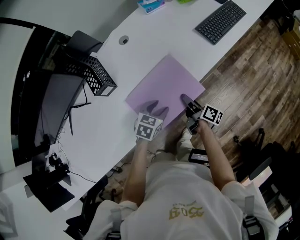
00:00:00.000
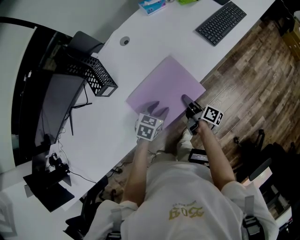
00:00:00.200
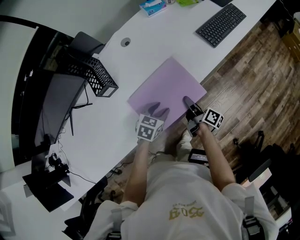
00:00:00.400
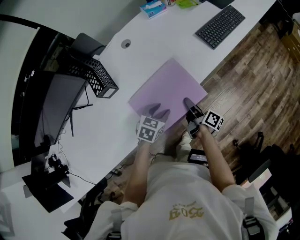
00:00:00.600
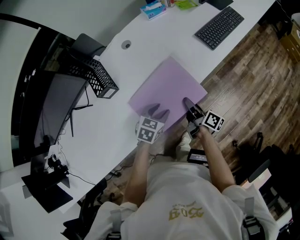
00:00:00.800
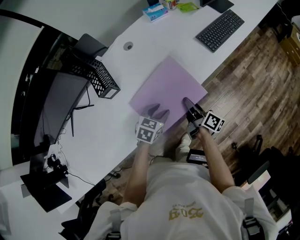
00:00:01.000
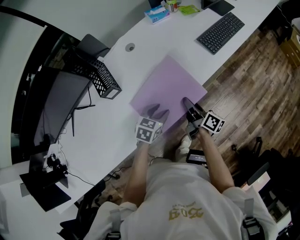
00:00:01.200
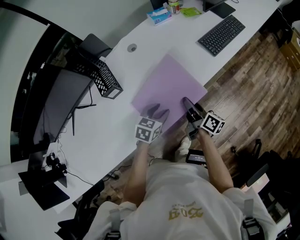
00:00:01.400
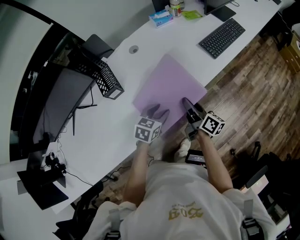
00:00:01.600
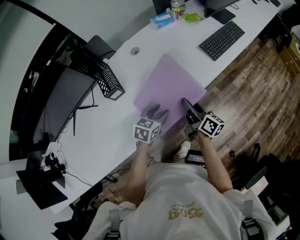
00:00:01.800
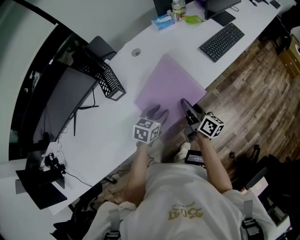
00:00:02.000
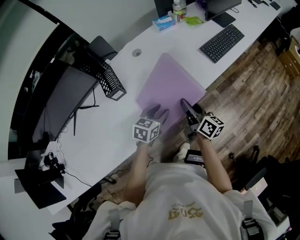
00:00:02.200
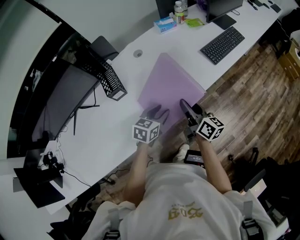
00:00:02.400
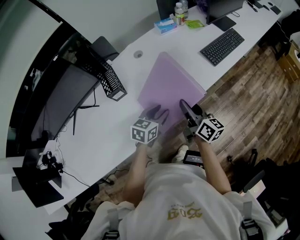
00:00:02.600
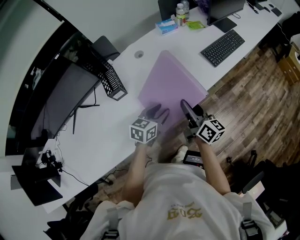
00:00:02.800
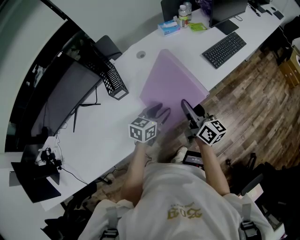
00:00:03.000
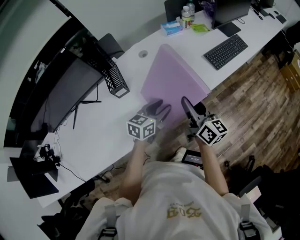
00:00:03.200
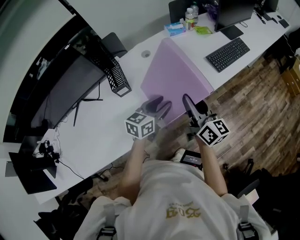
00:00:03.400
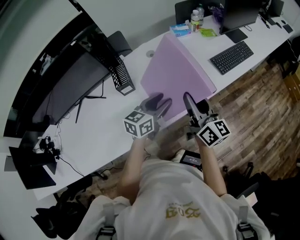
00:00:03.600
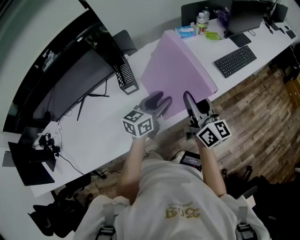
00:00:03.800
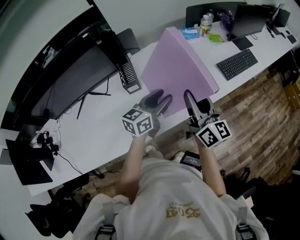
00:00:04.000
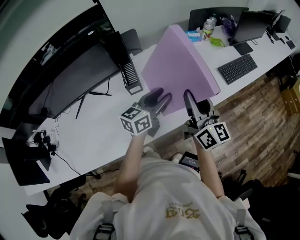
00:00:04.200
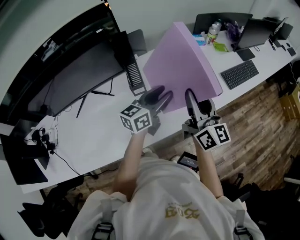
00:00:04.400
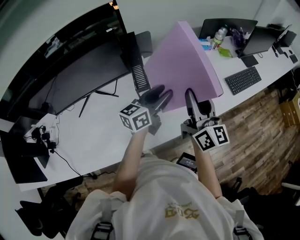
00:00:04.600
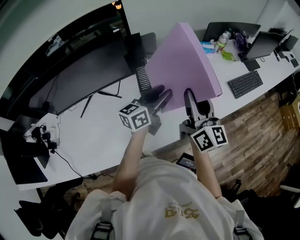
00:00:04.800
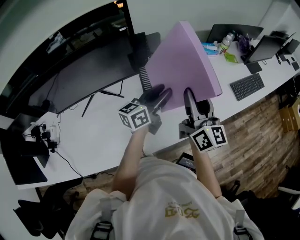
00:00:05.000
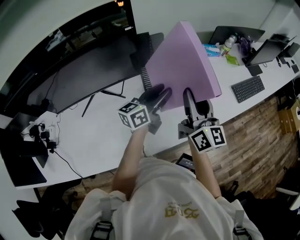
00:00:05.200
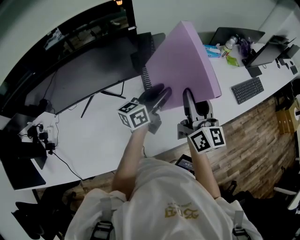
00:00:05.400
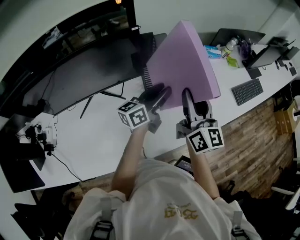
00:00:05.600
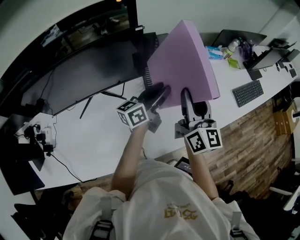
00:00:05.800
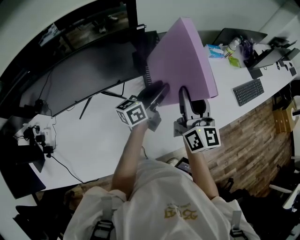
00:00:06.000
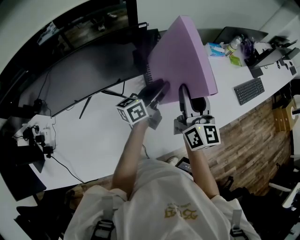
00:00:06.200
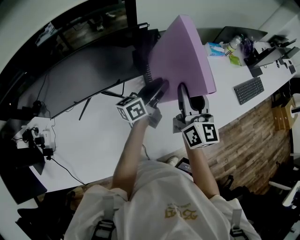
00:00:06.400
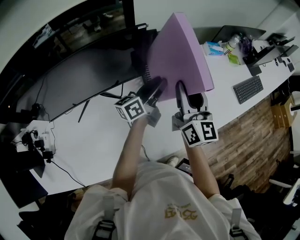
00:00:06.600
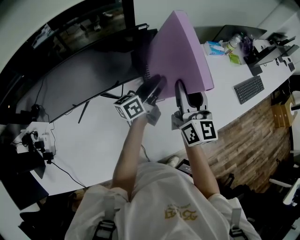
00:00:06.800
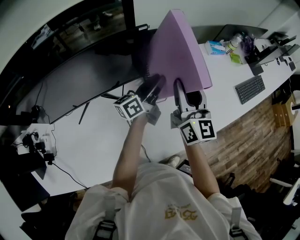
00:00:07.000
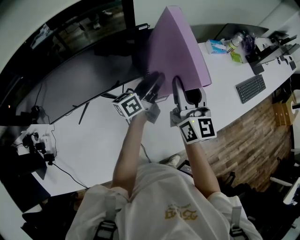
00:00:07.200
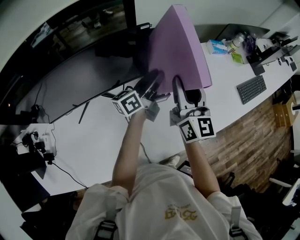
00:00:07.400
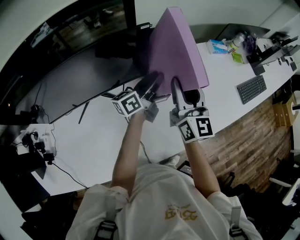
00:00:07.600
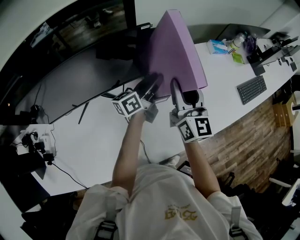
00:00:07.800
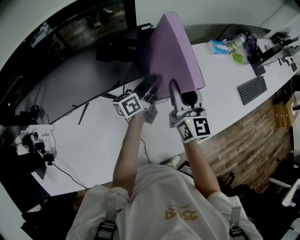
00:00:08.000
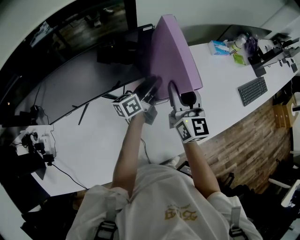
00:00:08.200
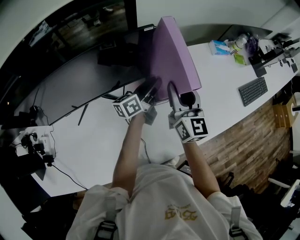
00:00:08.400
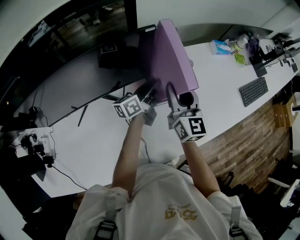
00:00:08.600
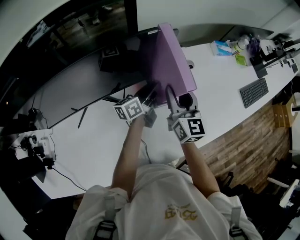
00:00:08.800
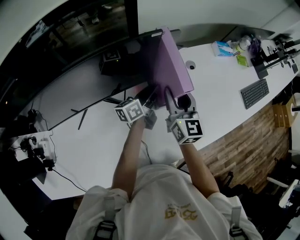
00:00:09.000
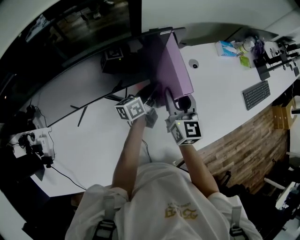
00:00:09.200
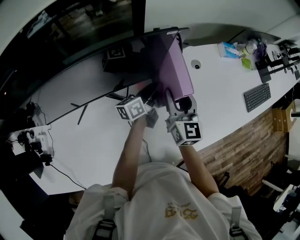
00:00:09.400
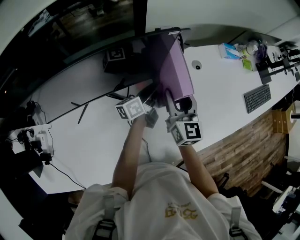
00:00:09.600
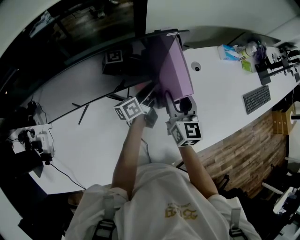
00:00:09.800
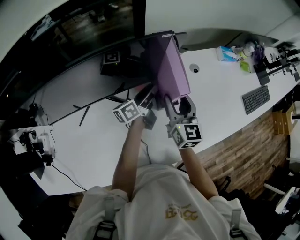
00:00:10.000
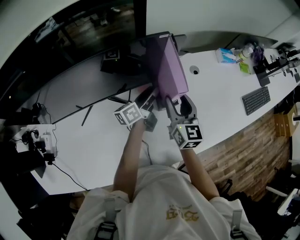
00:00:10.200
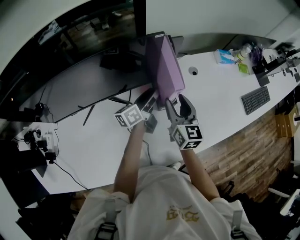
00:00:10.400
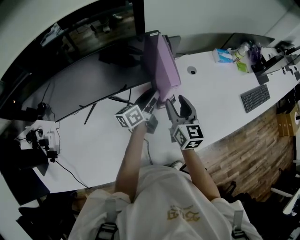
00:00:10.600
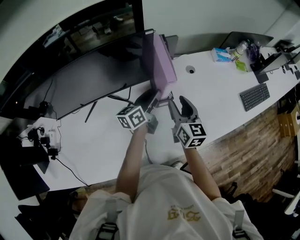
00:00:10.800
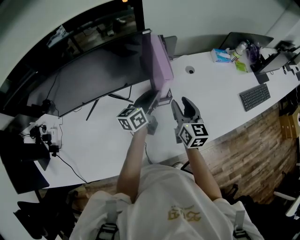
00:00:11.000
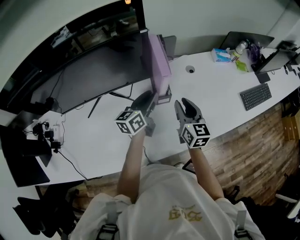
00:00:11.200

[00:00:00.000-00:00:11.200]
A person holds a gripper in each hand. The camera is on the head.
00:00:00.000 to 00:00:01.600: The right gripper heads upward, covering roughly 10 cm. The left gripper shifts about 5 cm upward.
00:00:01.600 to 00:00:03.200: The left gripper shifts some 10 cm upward, and changes its angle by about 20 degrees. Meanwhile the right gripper heads upward, covering some 15 cm, and rotates approximately 30 degrees.
00:00:03.200 to 00:00:04.800: Both grippers travel together to the left and upward, approximately 20 cm. The left gripper changes its angle by about 30 degrees.
00:00:04.800 to 00:00:06.400: The left gripper heads to the left and forward, covering some 15 cm, while the right gripper travels to the left by roughly 15 cm.
00:00:06.400 to 00:00:08.000: The right gripper shifts by about 10 cm. Meanwhile the left gripper shifts by some 5 cm.
00:00:08.000 to 00:00:09.600: The left gripper shifts some 10 cm downward. Meanwhile the right gripper moves downward and to the left, roughly 10 cm.
00:00:09.600 to 00:00:11.200: The right gripper is displaced to the right and backward by some 15 cm; the left gripper goes roughly 15 cm backward and upward, and turns by approximately 30 degrees.

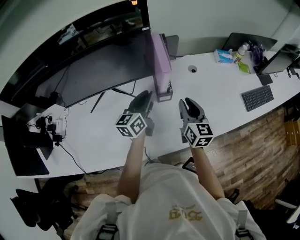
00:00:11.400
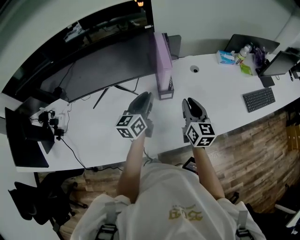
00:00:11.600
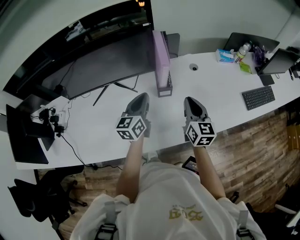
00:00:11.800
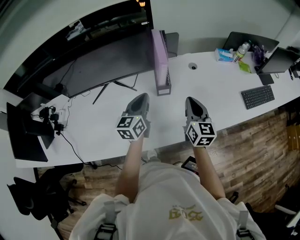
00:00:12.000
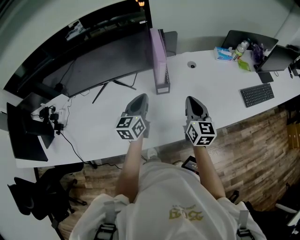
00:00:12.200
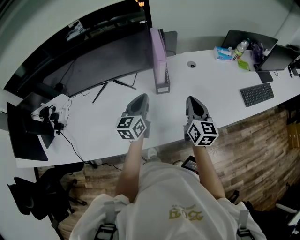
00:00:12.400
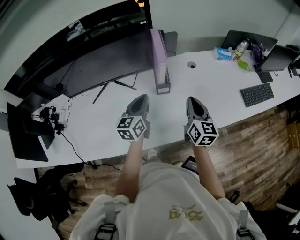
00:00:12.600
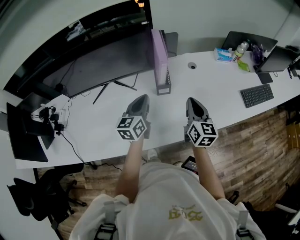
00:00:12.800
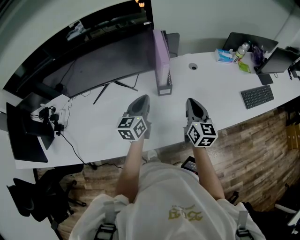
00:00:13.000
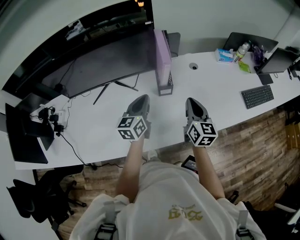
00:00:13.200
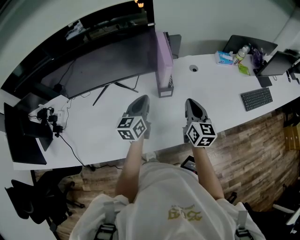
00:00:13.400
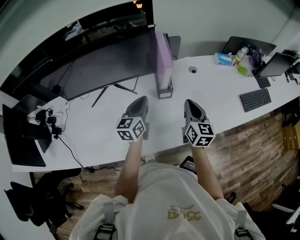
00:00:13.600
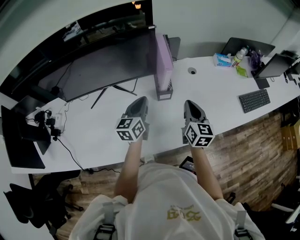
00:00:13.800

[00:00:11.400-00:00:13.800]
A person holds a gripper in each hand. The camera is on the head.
00:00:11.400 to 00:00:12.600: The grippers both shift backward by some 5 cm. The left gripper closes up.
00:00:12.600 to 00:00:13.800: The grippers stay close to where they were, moving slightly.

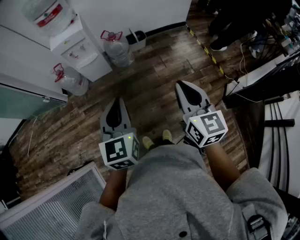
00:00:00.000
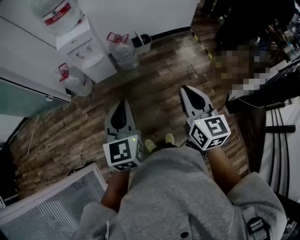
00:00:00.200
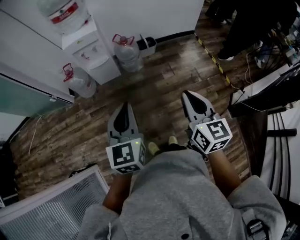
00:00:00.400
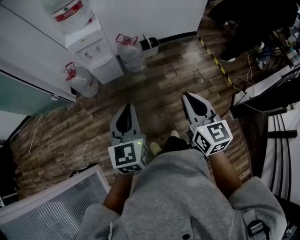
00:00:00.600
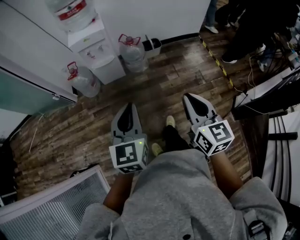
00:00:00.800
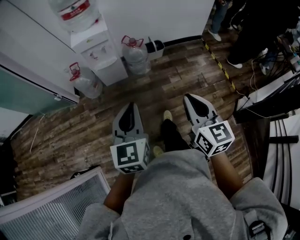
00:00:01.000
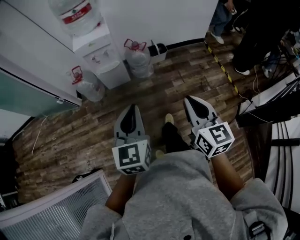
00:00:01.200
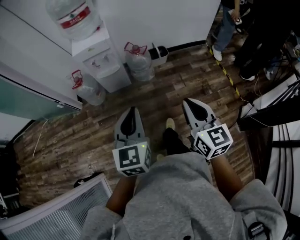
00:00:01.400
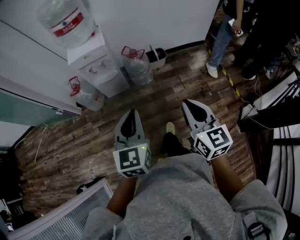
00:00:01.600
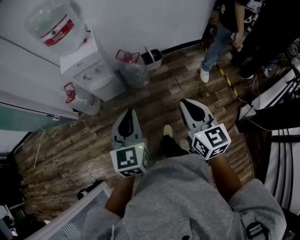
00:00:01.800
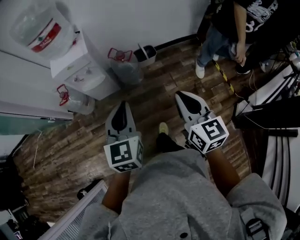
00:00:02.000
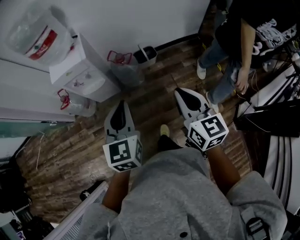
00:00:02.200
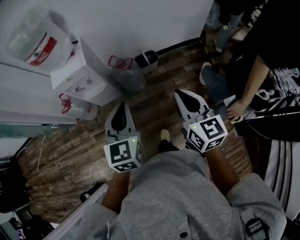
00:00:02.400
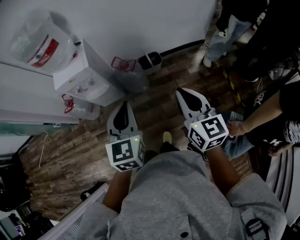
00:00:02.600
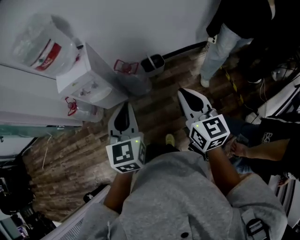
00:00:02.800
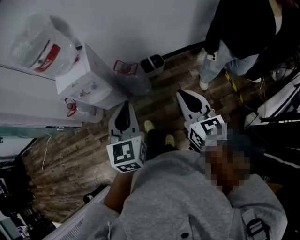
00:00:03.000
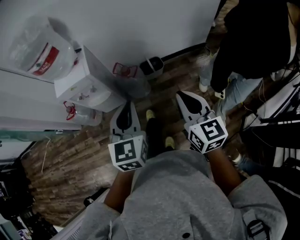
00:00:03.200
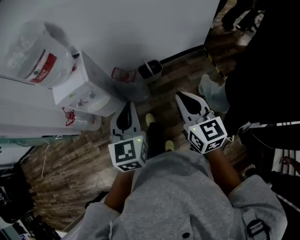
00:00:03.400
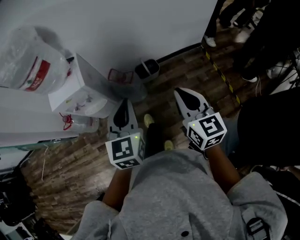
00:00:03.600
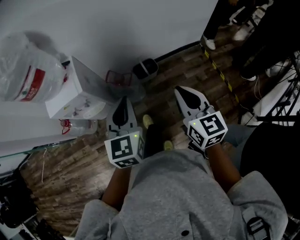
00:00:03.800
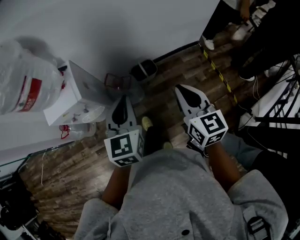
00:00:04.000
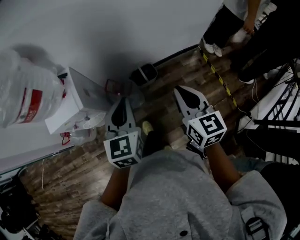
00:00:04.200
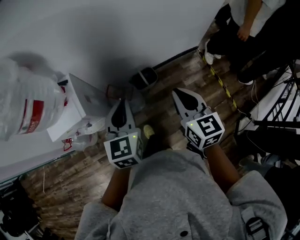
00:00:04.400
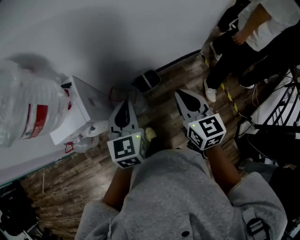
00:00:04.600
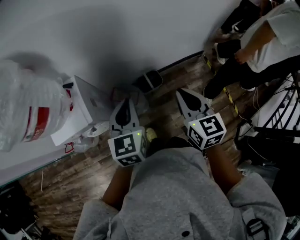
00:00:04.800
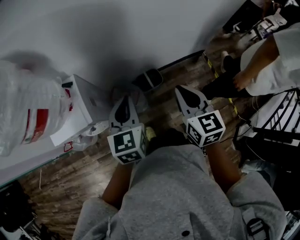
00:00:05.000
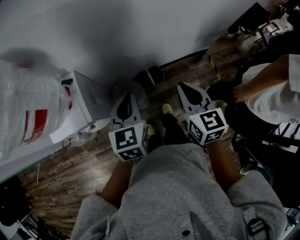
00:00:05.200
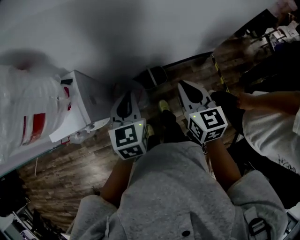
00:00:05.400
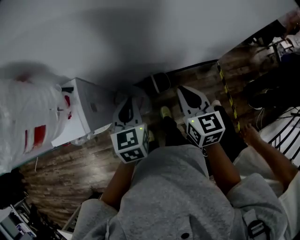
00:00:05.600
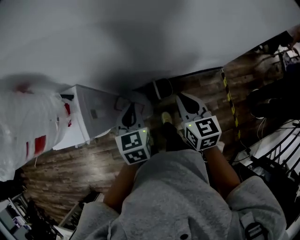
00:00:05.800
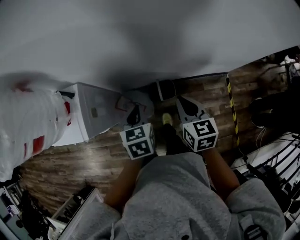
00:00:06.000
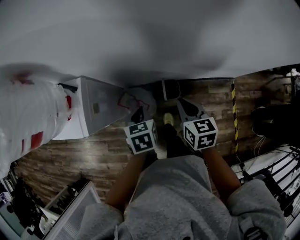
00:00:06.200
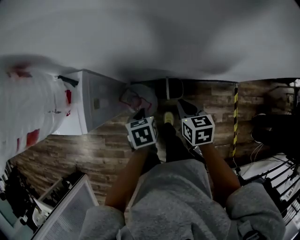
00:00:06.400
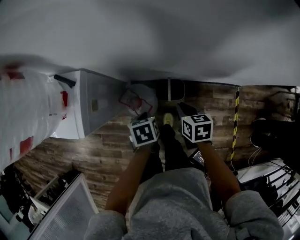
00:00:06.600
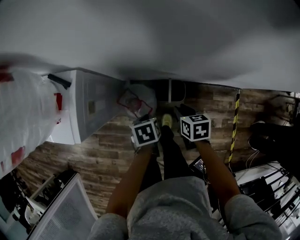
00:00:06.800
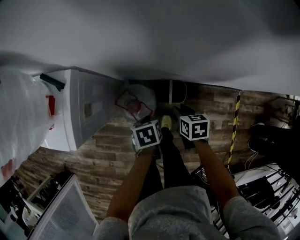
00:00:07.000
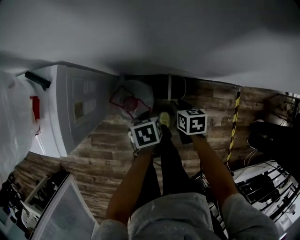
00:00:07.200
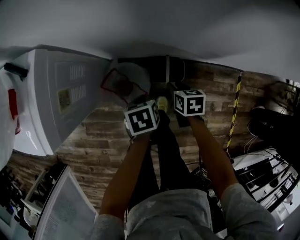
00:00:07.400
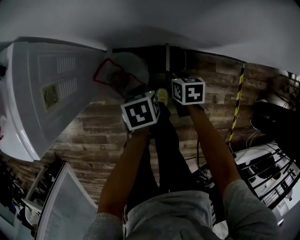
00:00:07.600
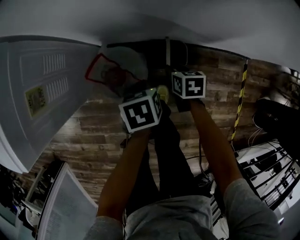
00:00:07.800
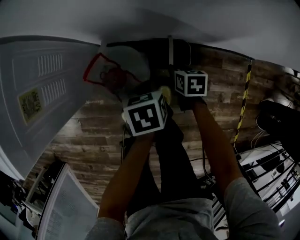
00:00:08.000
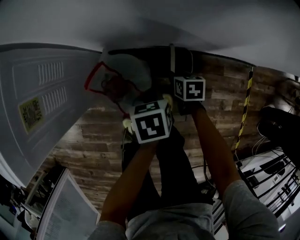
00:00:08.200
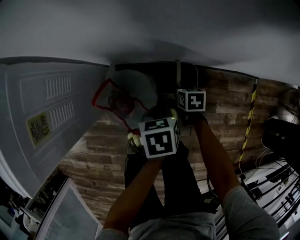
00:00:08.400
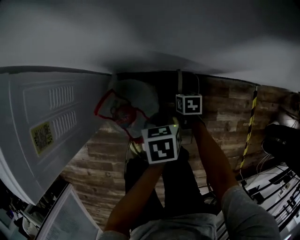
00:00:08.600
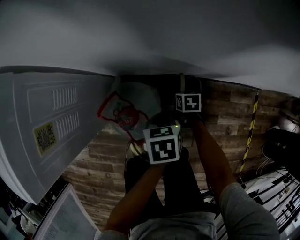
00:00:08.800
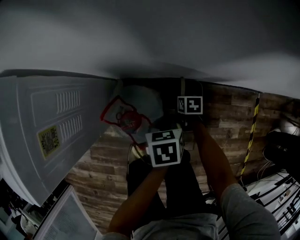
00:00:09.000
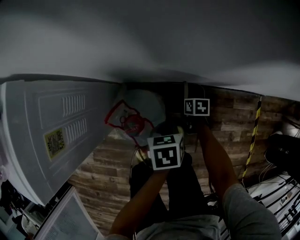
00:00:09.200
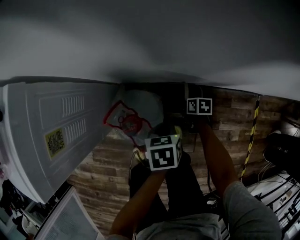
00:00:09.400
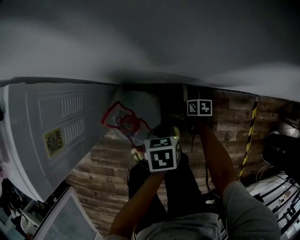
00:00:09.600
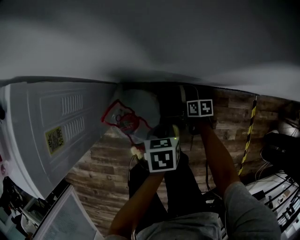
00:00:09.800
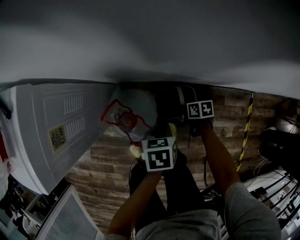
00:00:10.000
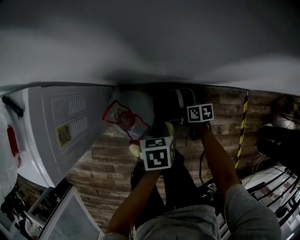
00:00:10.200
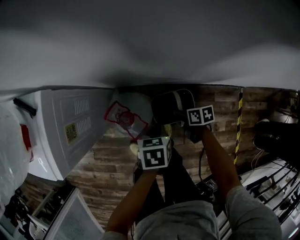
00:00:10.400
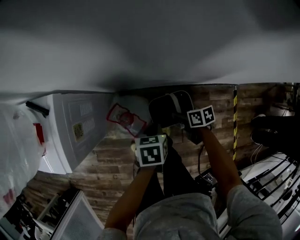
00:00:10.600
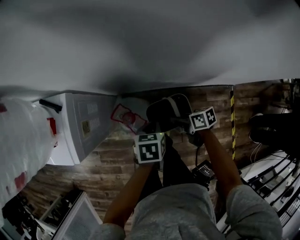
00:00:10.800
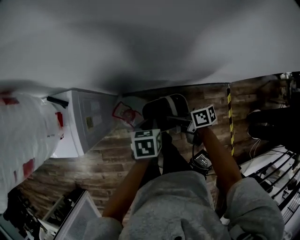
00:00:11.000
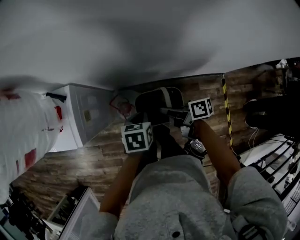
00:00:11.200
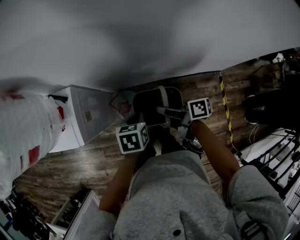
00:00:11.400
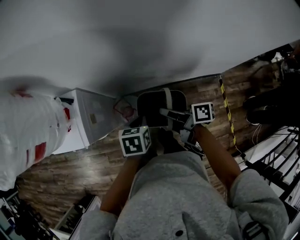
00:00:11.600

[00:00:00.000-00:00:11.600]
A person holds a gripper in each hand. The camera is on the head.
00:00:00.000 to 00:00:01.400: The left gripper goes about 10 cm forward and to the left, while the right gripper heads to the left and forward, covering roughly 10 cm.
00:00:01.400 to 00:00:02.800: The two grippers go roughly 30 cm forward and to the right.
00:00:02.800 to 00:00:04.400: The grippers both shift forward by roughly 30 cm.
00:00:04.400 to 00:00:05.800: The right gripper moves forward, about 25 cm, while the left gripper is displaced forward and downward by roughly 20 cm, and rotates approximately 20 degrees.
00:00:05.800 to 00:00:07.200: Both grippers travel together downward, roughly 35 cm. The right gripper turns by about 40 degrees, and opens up. The left gripper points its fingers about 30 degrees further downward.
00:00:07.200 to 00:00:08.800: The right gripper moves downward, some 30 cm. The left gripper is displaced downward and to the right by roughly 15 cm.
00:00:08.800 to 00:00:10.200: The two grippers go approximately 10 cm upward. The right gripper changes its angle by some 30 degrees, and closes its fingers.
00:00:10.200 to 00:00:11.600: The right gripper goes roughly 50 cm upward, and points its fingers approximately 40 degrees further upward, while the left gripper goes about 30 cm upward.